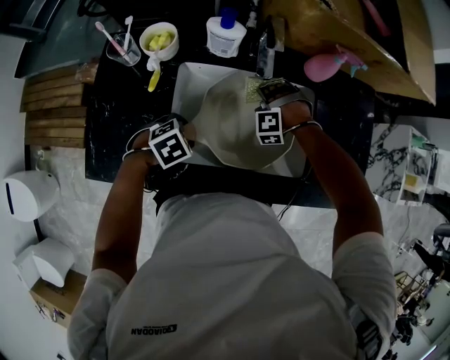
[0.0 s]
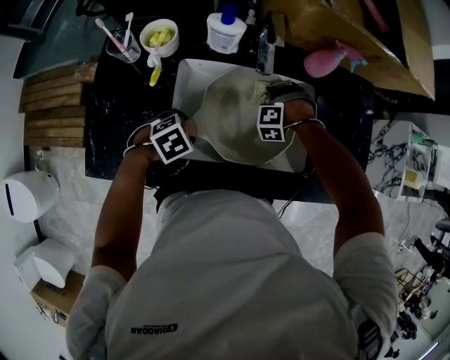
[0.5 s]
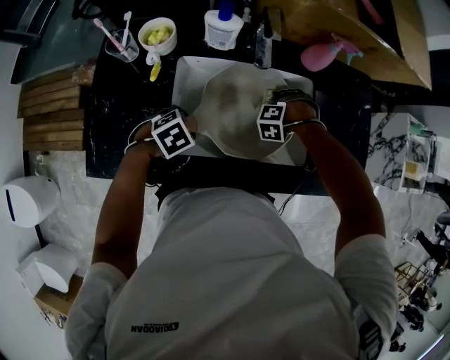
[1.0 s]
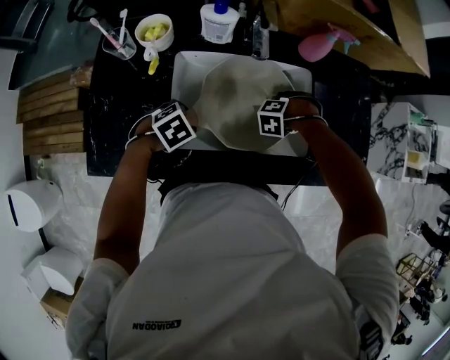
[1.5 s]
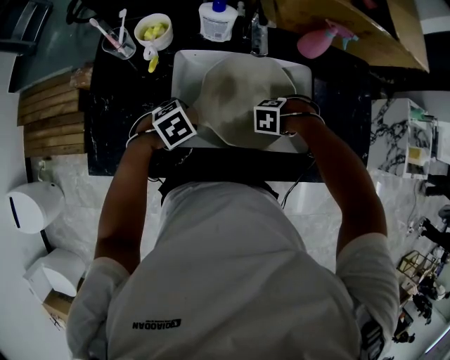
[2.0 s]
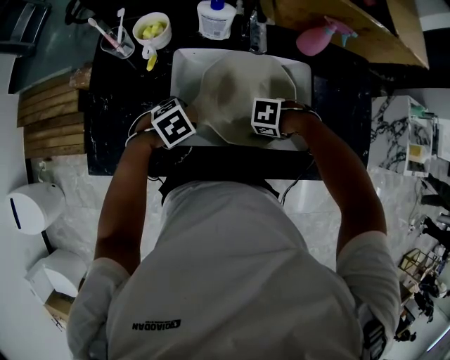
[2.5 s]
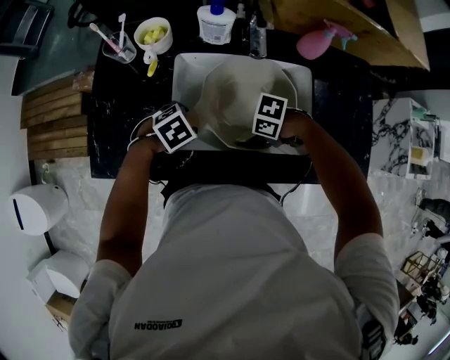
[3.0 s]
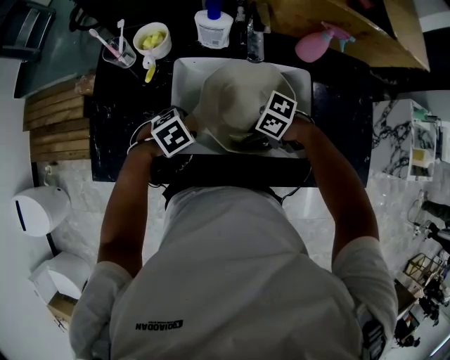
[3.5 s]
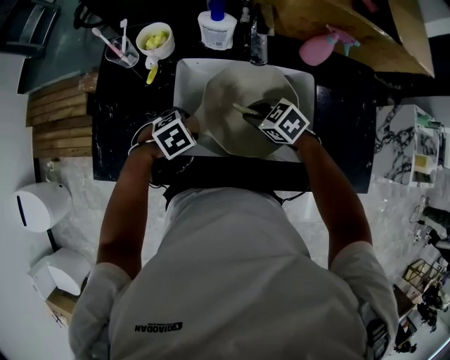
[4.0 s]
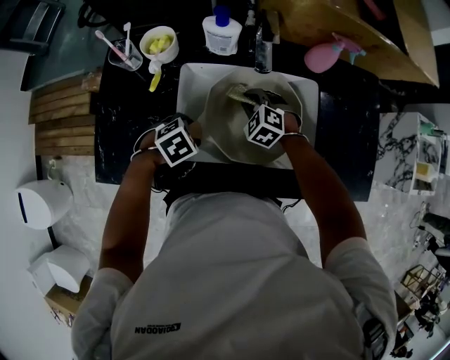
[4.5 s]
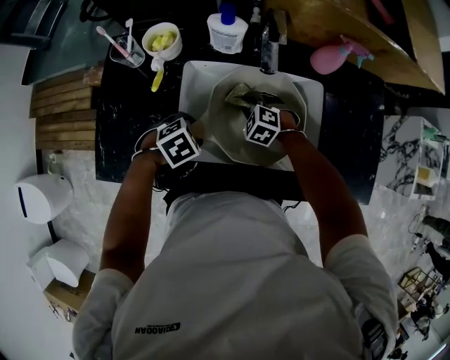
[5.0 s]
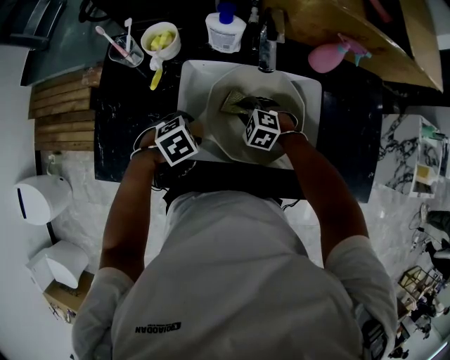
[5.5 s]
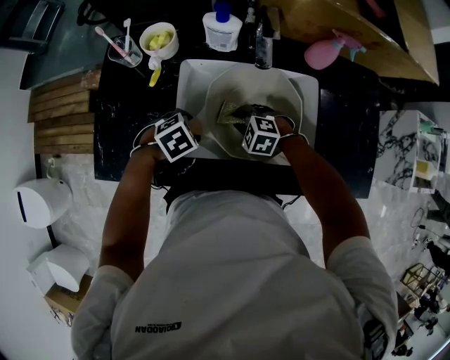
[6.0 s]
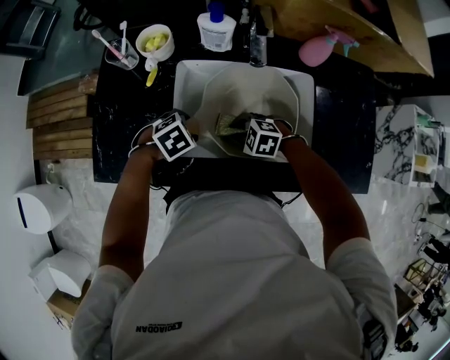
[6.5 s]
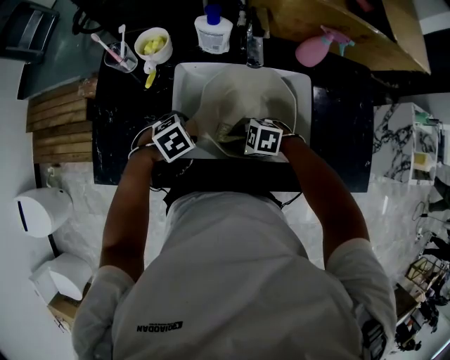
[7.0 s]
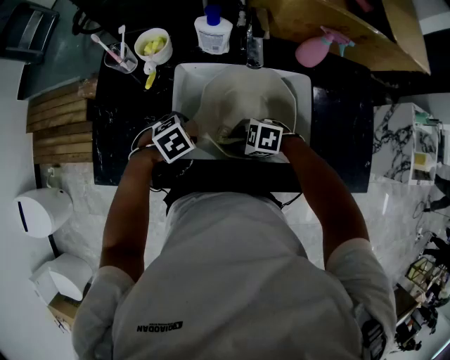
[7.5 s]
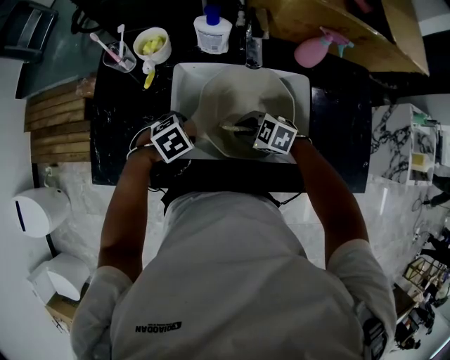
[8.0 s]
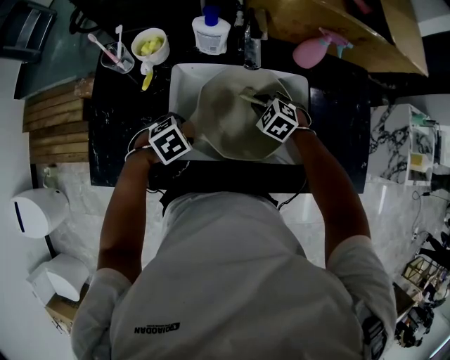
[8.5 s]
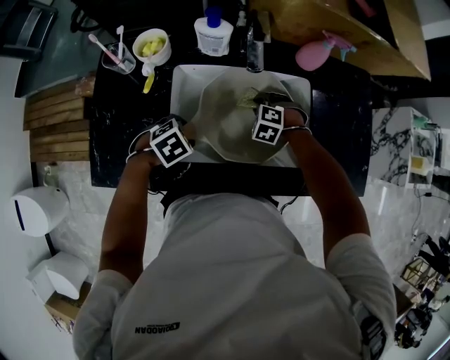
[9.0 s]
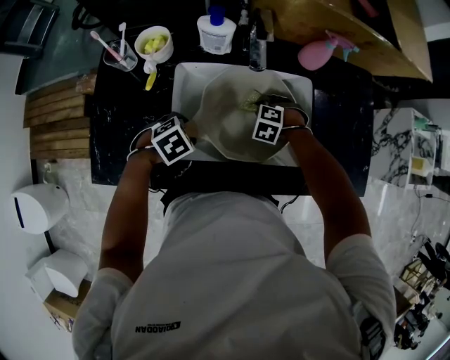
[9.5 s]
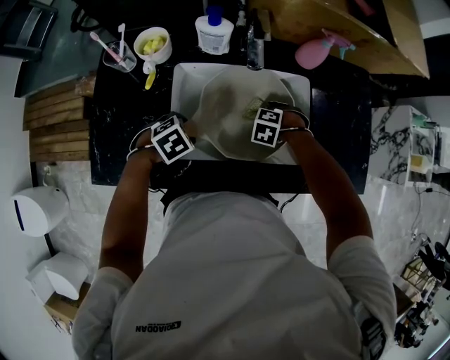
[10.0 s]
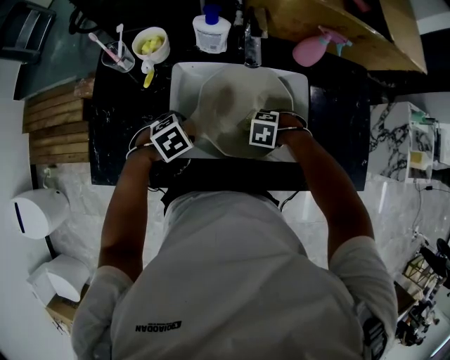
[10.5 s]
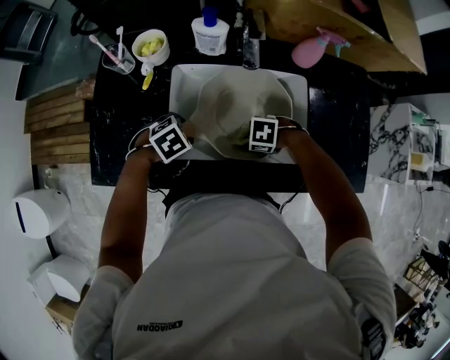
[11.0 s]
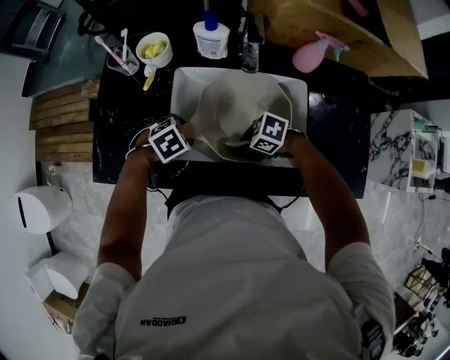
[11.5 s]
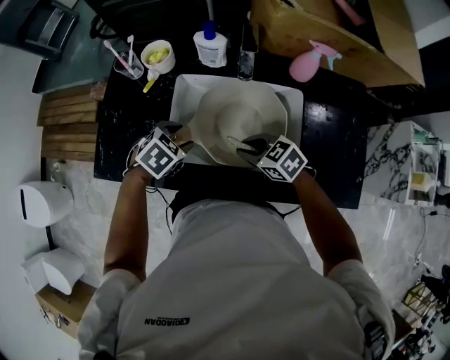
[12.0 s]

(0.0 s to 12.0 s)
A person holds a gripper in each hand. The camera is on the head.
0.0 s - 2.0 s: The right gripper changes place by some 15 cm, and changes its angle by roughly 50 degrees.
2.0 s - 4.0 s: The right gripper changes place by roughly 15 cm, and rotates about 60 degrees.
4.0 s - 6.0 s: The right gripper shifts some 5 cm downward, and changes its angle by roughly 30 degrees.
6.0 s - 8.0 s: The right gripper shifts by about 5 cm, and changes its angle by roughly 20 degrees.
8.0 s - 10.0 s: The right gripper shifts by approximately 10 cm, and tips its fingers downward by some 30 degrees.
10.0 s - 12.0 s: The left gripper moves upward, some 10 cm, while the right gripper is displaced upward by about 15 cm, and tilts its fingers approximately 40 degrees upward.

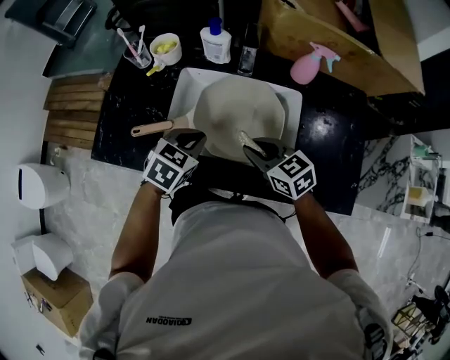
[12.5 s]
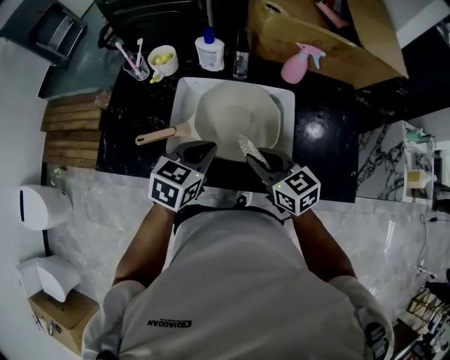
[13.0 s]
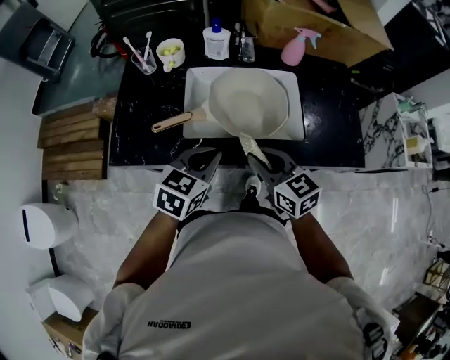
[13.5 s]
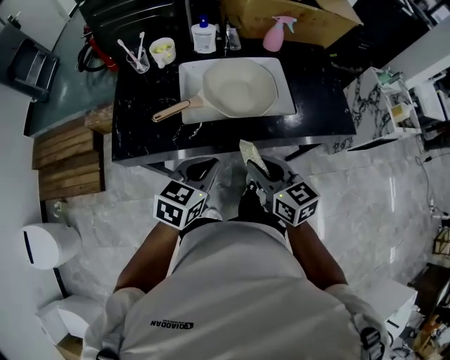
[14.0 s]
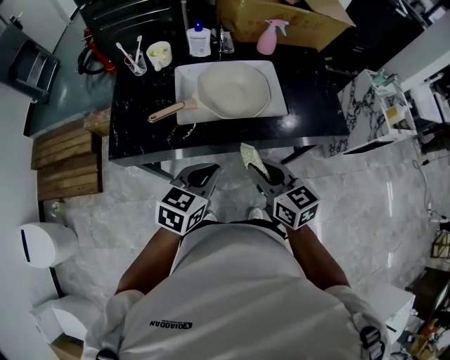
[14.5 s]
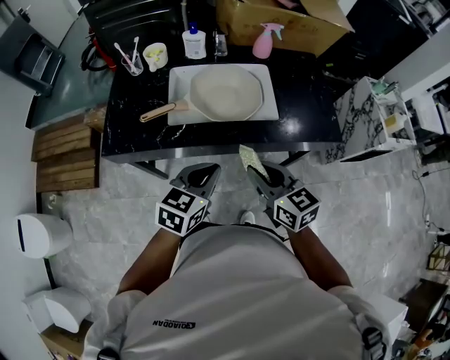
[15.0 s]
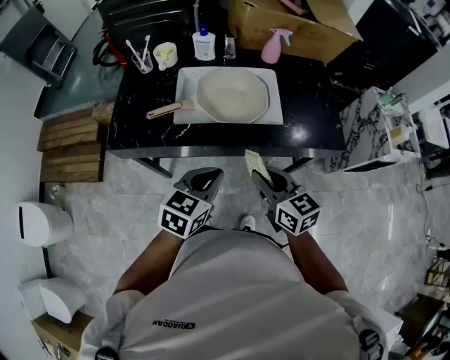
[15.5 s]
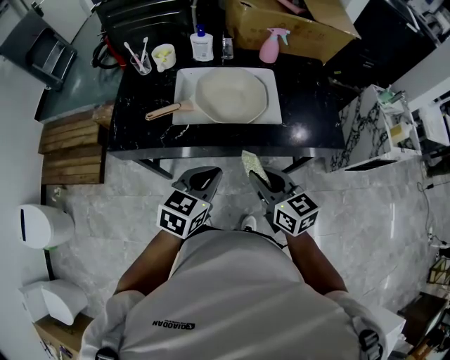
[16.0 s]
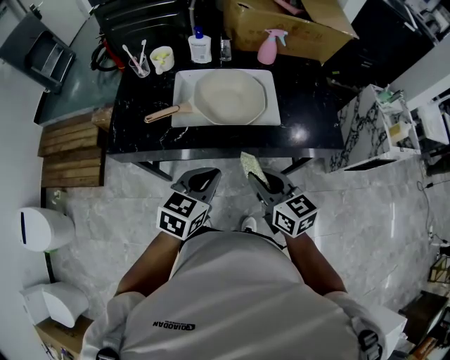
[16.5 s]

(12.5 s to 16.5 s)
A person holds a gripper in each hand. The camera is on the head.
12.5 s - 14.5 s: Both grippers travel together backward, roughly 25 cm. The left gripper turns by about 20 degrees. The right gripper changes its angle by approximately 30 degrees.
14.5 s - 16.5 s: Both grippers travel together to the right, roughly 5 cm.

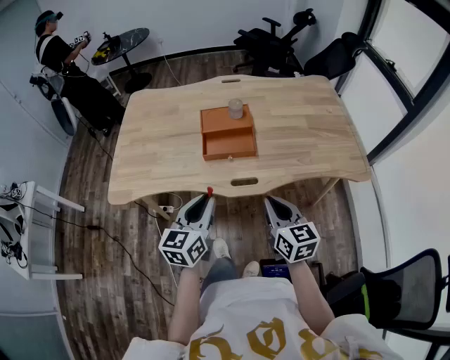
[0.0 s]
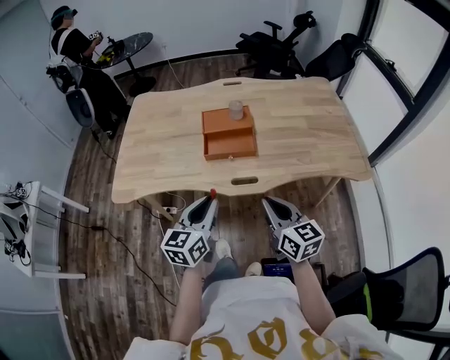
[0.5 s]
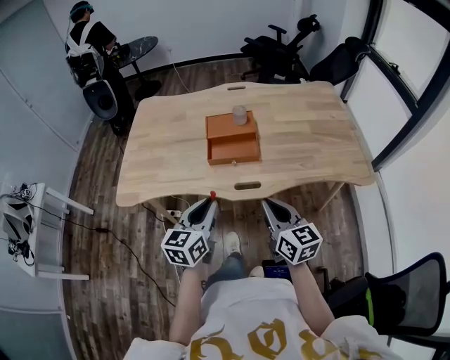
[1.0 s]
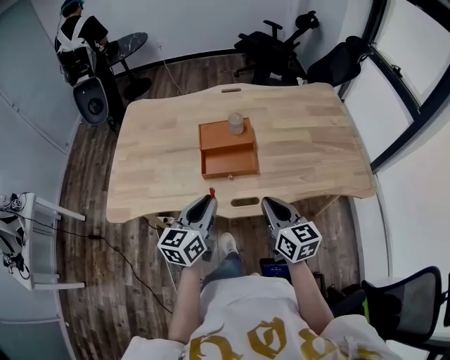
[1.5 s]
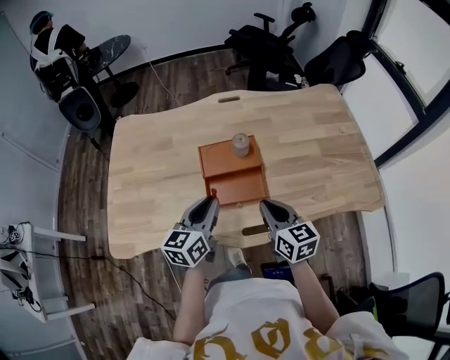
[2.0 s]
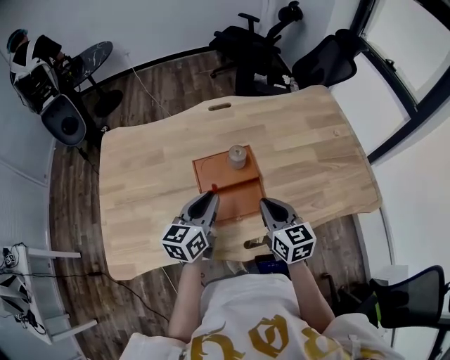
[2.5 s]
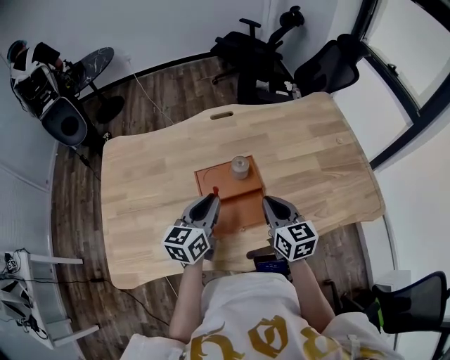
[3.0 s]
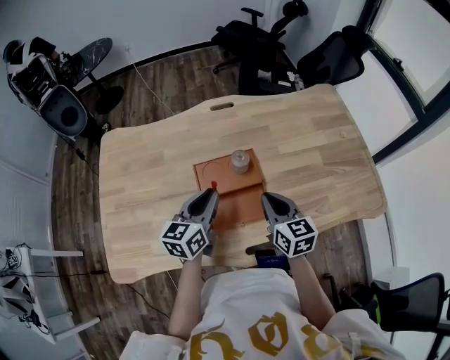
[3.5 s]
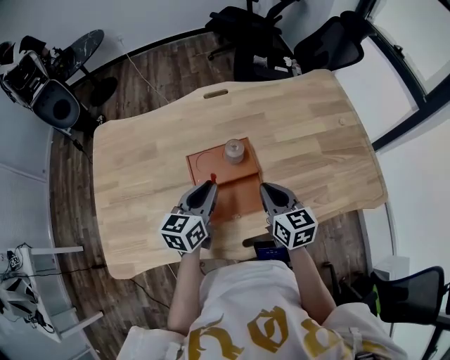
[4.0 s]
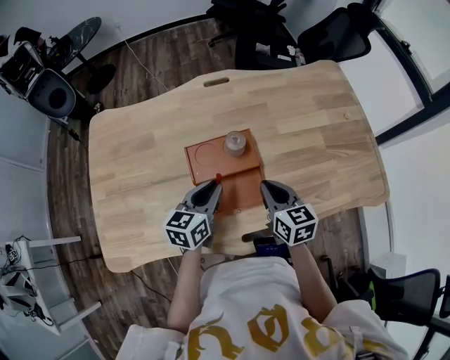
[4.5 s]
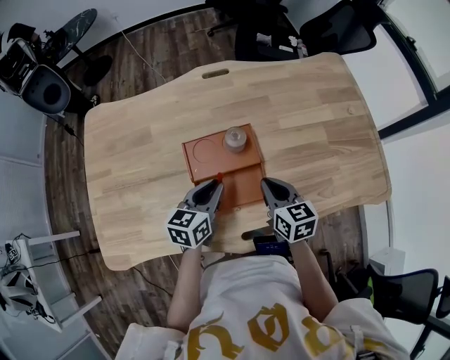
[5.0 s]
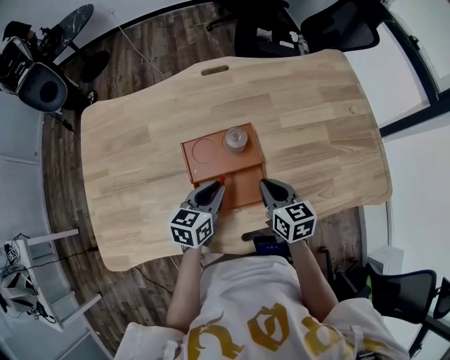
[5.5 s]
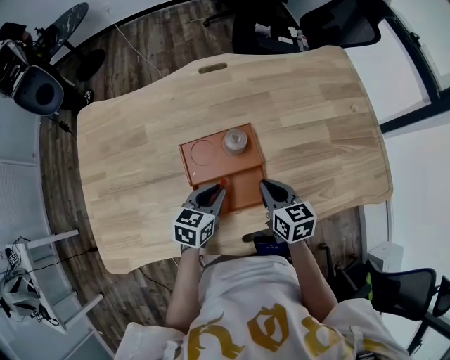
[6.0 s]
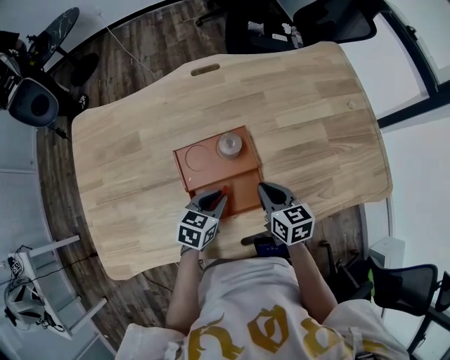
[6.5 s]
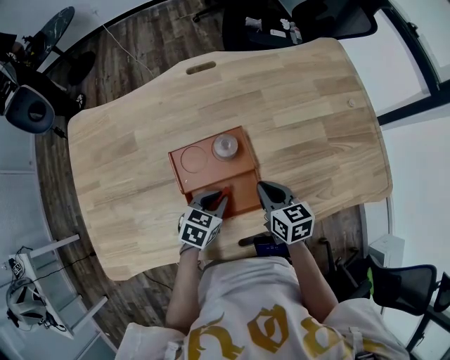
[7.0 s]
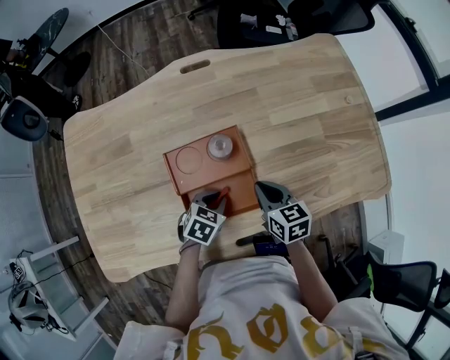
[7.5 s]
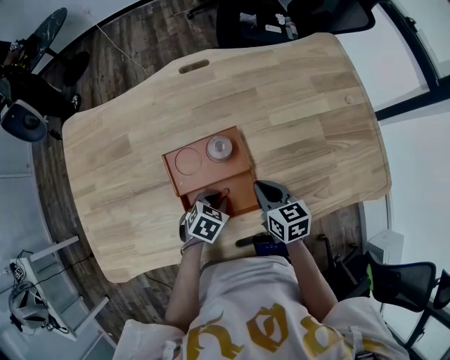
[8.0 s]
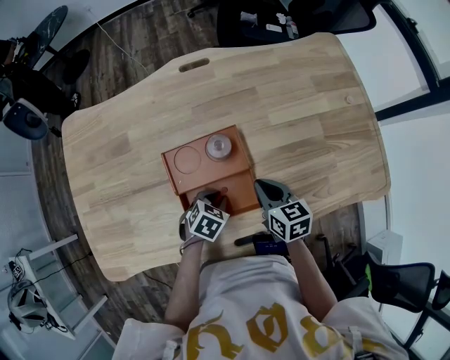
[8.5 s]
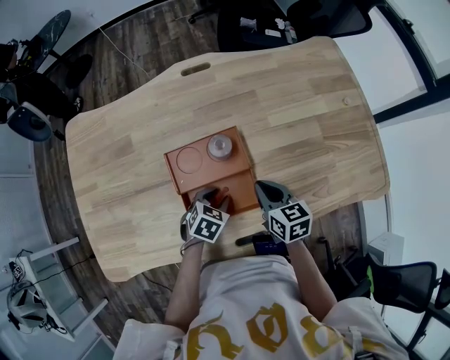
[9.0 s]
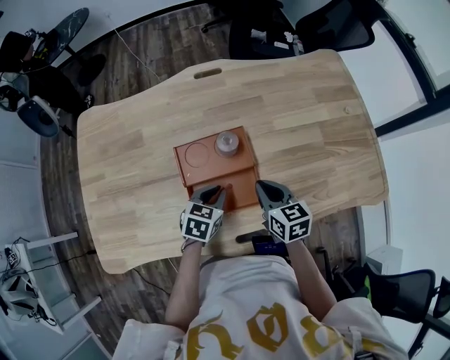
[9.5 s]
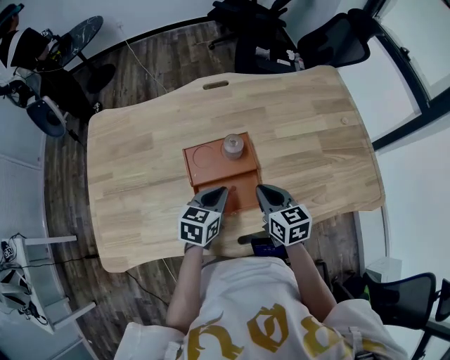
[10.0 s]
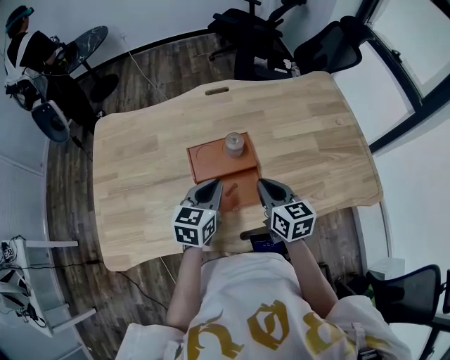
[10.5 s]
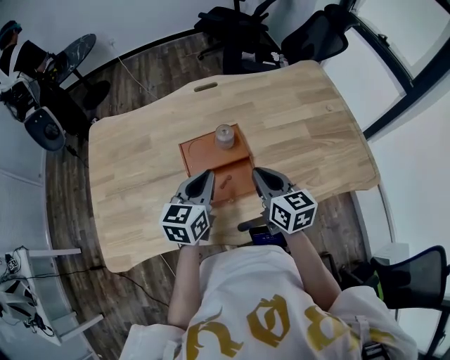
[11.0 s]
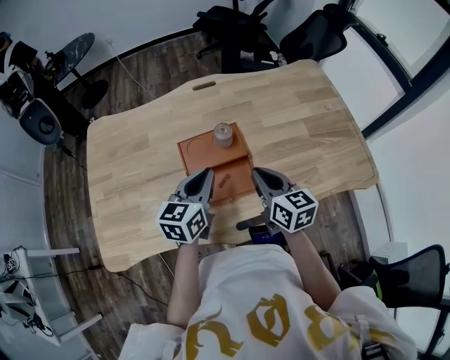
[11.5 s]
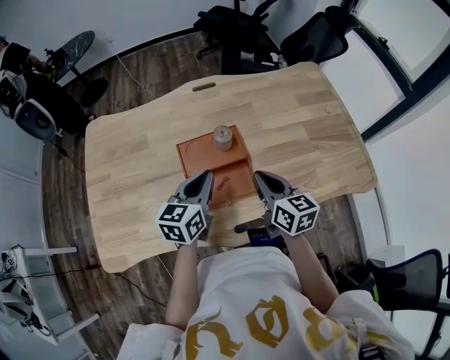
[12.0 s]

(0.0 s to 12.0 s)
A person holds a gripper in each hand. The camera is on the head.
0.0 s - 2.0 s: The two grippers go about 25 cm forward.
2.0 s - 4.0 s: The two grippers go approximately 10 cm forward.
4.0 s - 6.0 s: The two grippers go some 10 cm downward. The left gripper turns by some 20 degrees.
6.0 s - 8.0 s: The left gripper heads downward, covering some 10 cm, and swivels roughly 30 degrees.
8.0 s - 10.0 s: The right gripper goes approximately 5 cm upward, while the left gripper travels upward by about 15 cm, and turns by some 30 degrees.
10.0 s - 12.0 s: Both grippers move upward, about 10 cm.
